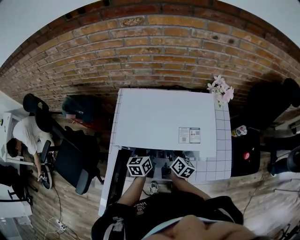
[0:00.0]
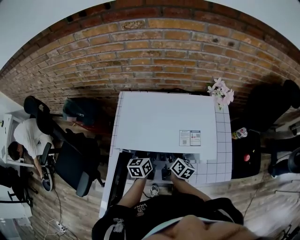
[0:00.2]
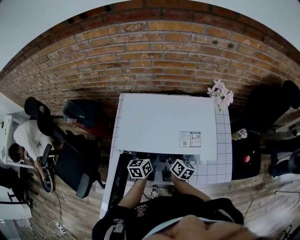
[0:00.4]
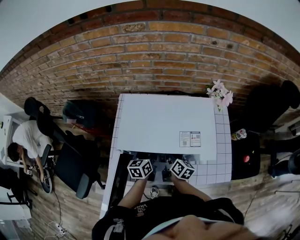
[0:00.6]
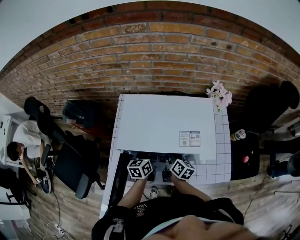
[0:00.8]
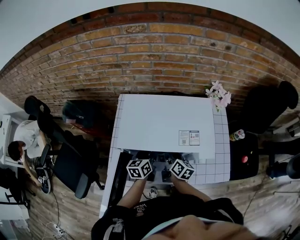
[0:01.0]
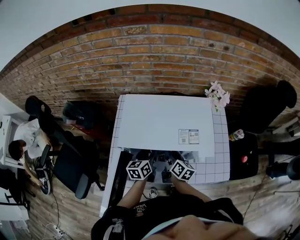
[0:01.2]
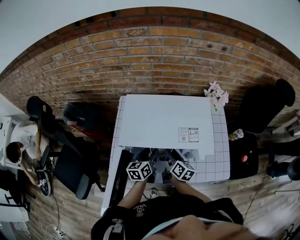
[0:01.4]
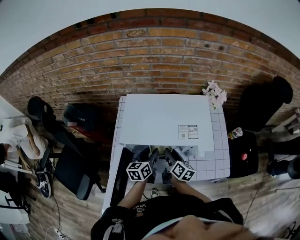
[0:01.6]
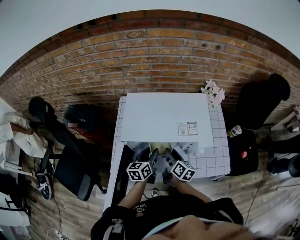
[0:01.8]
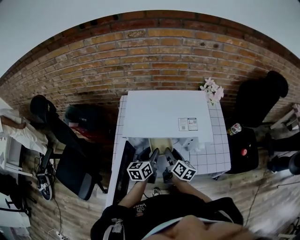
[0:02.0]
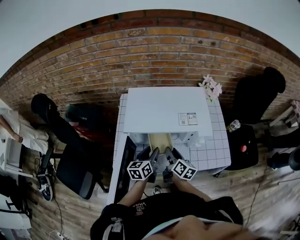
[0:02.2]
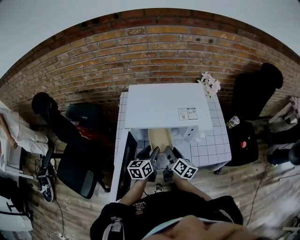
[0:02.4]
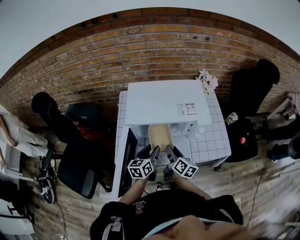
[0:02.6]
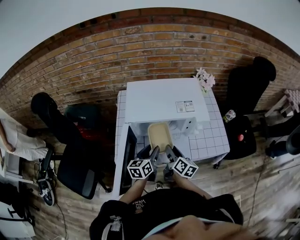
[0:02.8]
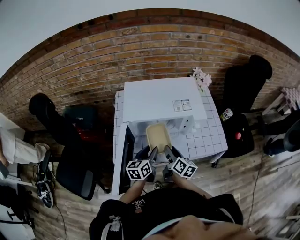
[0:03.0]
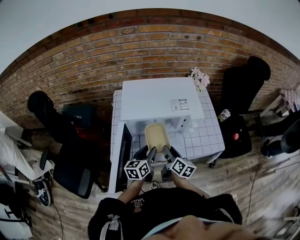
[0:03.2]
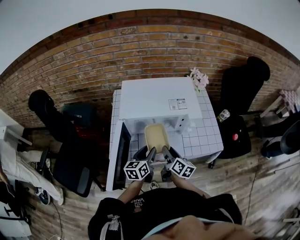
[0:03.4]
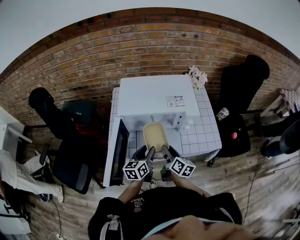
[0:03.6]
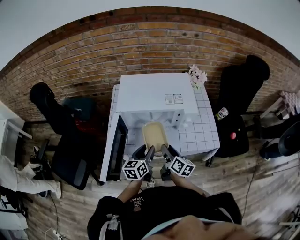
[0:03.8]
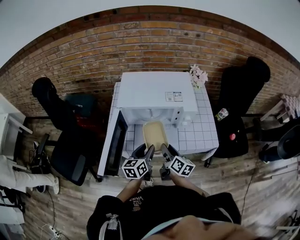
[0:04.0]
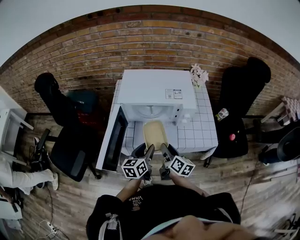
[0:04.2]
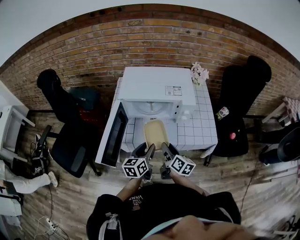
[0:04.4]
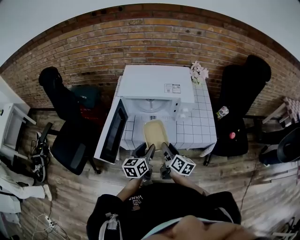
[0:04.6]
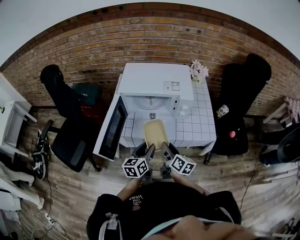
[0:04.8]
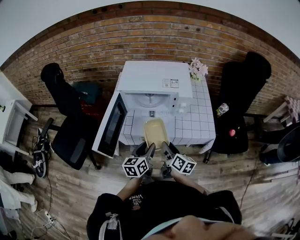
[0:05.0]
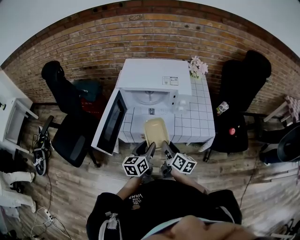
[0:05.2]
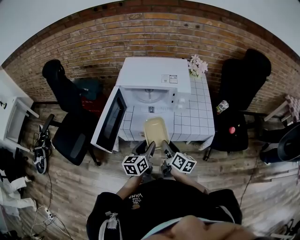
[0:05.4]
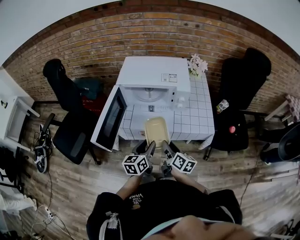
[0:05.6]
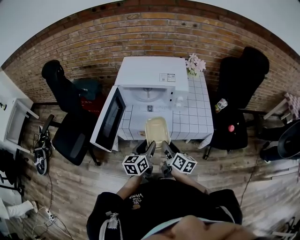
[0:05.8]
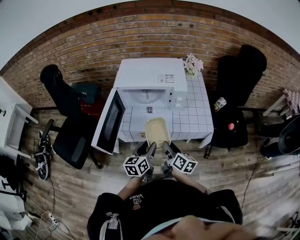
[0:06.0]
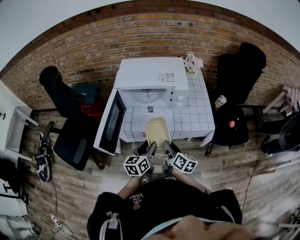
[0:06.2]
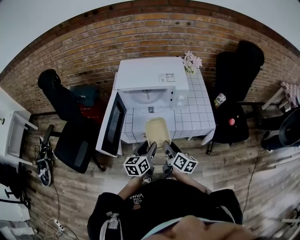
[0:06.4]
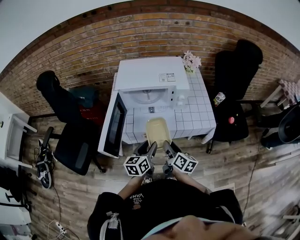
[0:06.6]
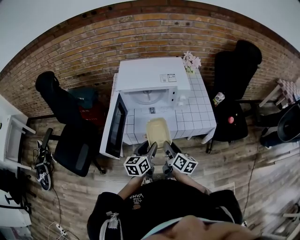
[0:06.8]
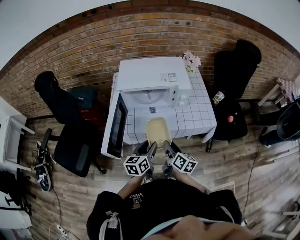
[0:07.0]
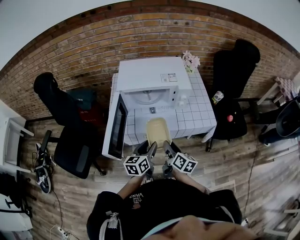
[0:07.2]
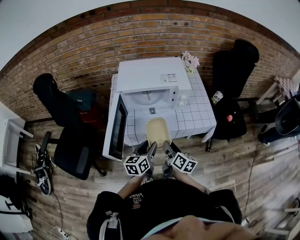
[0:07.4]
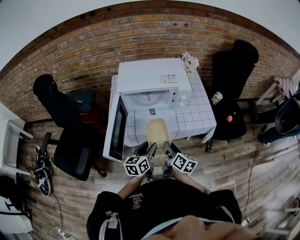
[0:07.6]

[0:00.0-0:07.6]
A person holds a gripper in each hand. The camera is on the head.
0.0 to 1.6 s: There are only small adjustments of the grippers.
1.6 to 3.0 s: The grippers both shift backward by about 15 cm.
3.0 to 4.6 s: The grippers both shift backward and to the right by roughly 15 cm.
4.6 to 6.0 s: The two grippers go about 5 cm backward.
6.0 to 7.6 s: The grippers both shift to the left by some 5 cm.

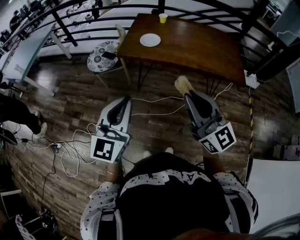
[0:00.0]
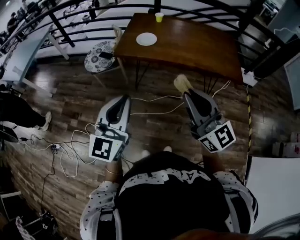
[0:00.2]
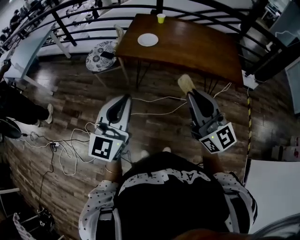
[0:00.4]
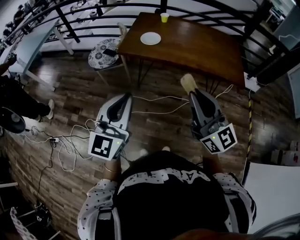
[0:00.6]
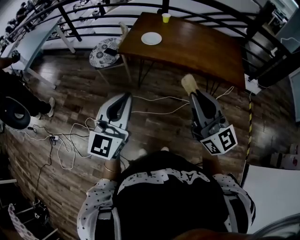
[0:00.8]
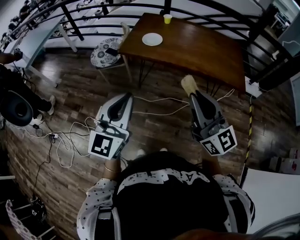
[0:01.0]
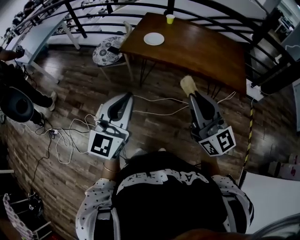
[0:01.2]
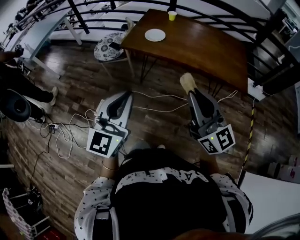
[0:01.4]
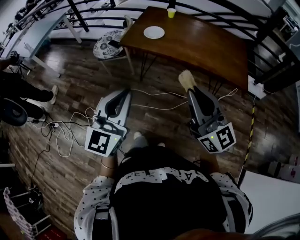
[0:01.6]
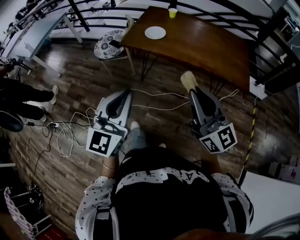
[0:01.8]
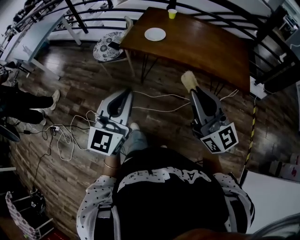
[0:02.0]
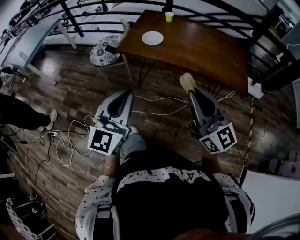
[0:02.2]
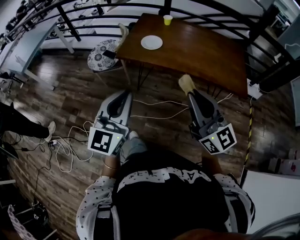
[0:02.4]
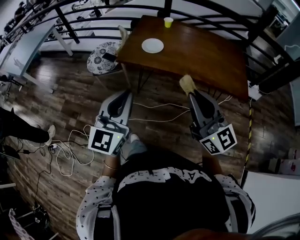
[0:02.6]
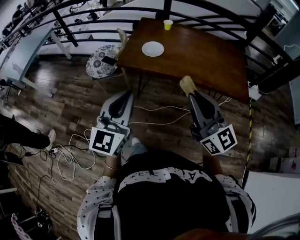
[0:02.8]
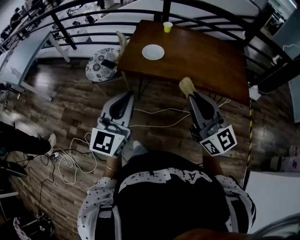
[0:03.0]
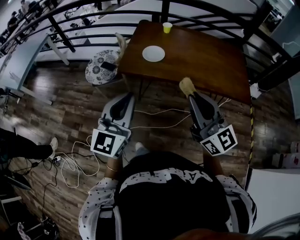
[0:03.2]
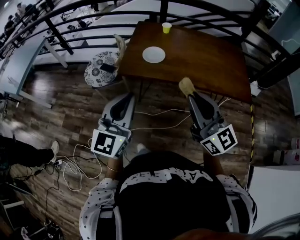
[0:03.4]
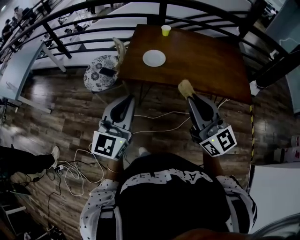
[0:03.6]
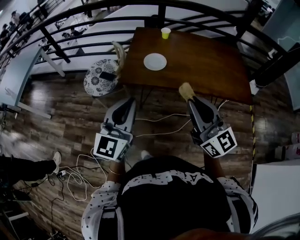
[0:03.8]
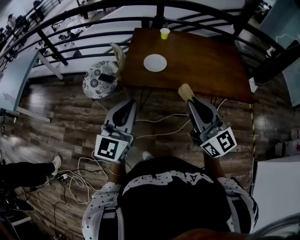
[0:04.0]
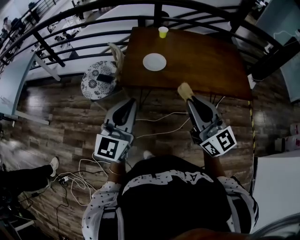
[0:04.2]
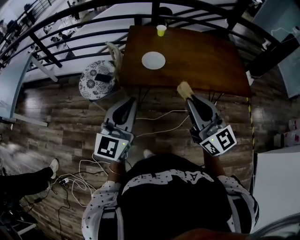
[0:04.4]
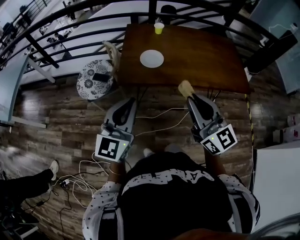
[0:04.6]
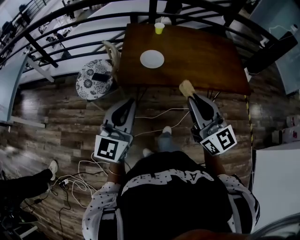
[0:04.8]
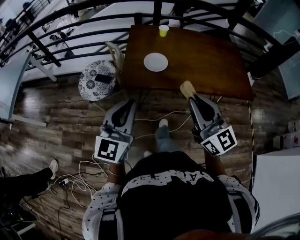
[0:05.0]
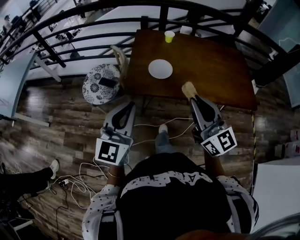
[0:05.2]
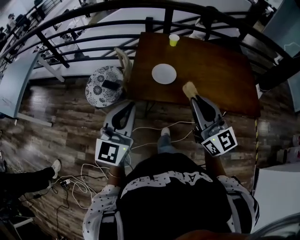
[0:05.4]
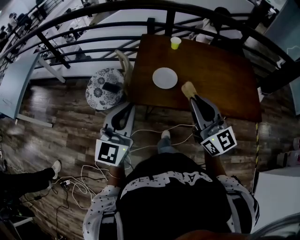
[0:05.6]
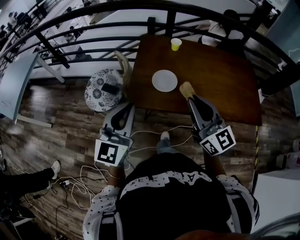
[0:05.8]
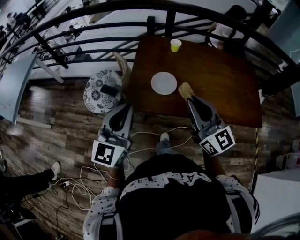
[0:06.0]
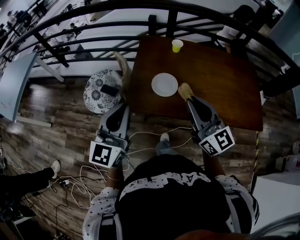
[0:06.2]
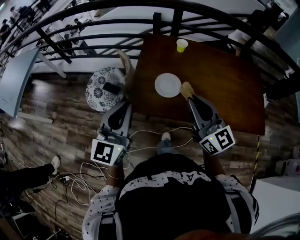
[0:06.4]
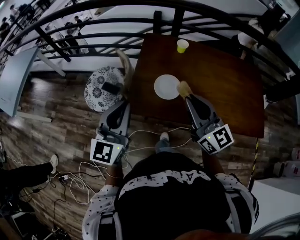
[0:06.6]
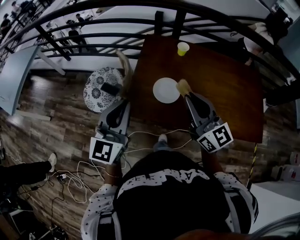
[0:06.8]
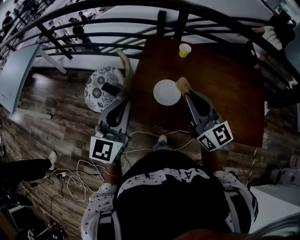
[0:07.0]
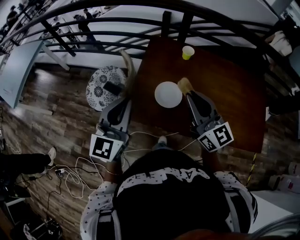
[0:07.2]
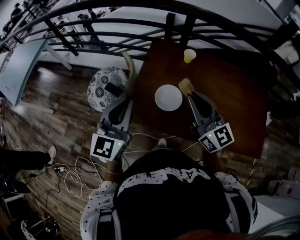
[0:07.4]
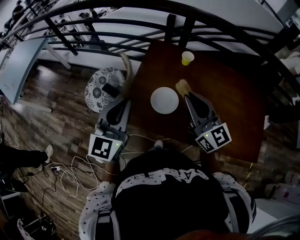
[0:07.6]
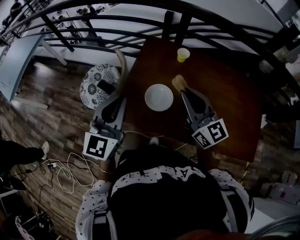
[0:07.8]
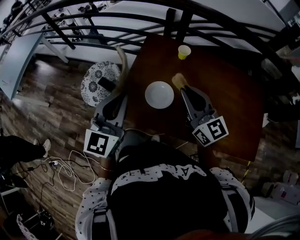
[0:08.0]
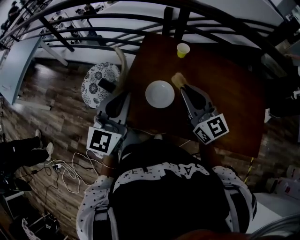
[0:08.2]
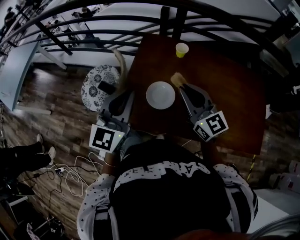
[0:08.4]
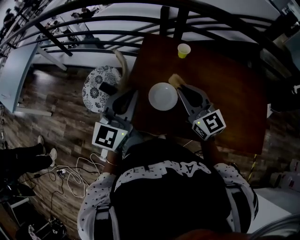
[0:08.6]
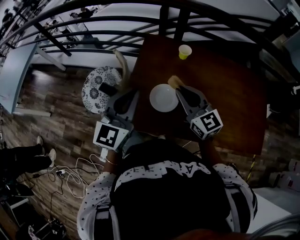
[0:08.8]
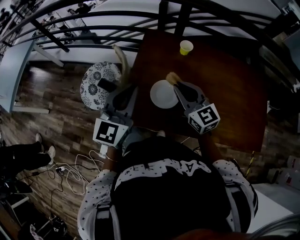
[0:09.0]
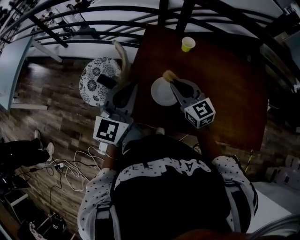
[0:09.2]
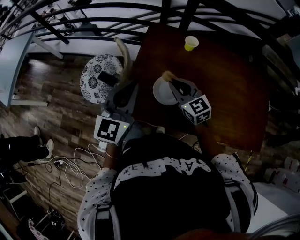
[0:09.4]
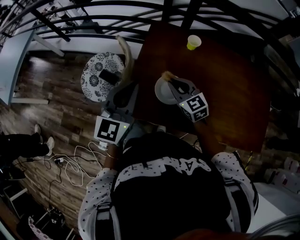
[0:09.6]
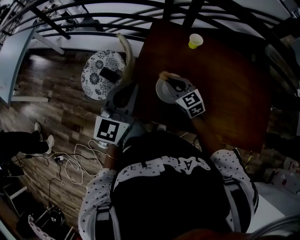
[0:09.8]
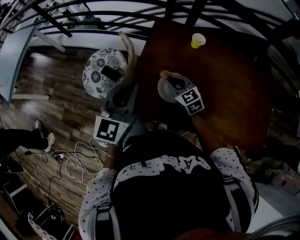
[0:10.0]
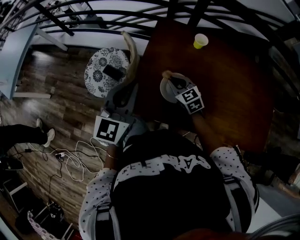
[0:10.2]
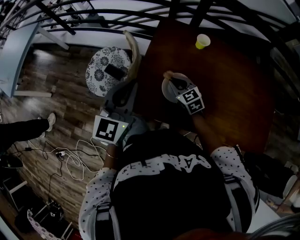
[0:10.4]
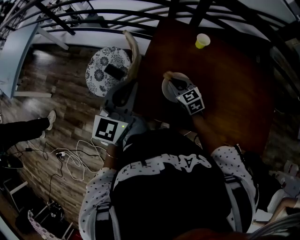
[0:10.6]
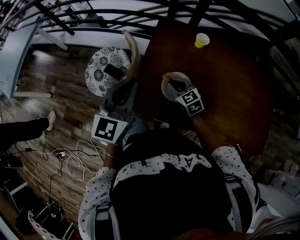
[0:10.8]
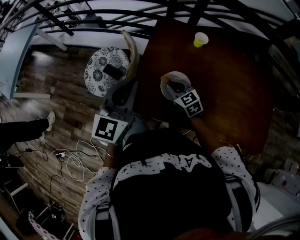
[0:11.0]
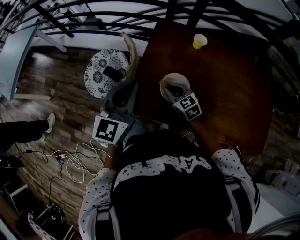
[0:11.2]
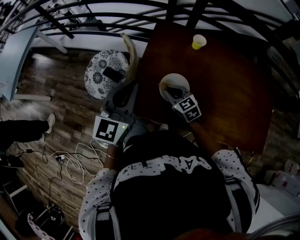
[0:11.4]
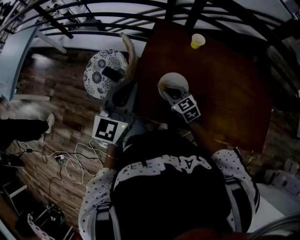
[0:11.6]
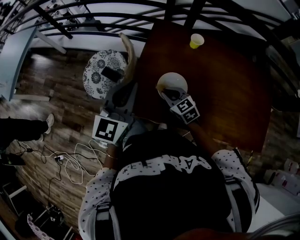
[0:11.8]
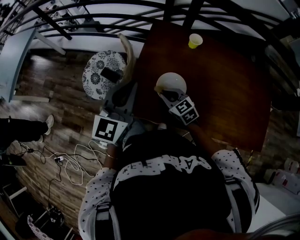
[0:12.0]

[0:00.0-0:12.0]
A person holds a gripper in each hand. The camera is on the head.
0.0 to 1.6 s: The two grippers go about 5 cm to the right.
1.6 to 3.0 s: The left gripper goes approximately 15 cm forward; the right gripper is displaced forward and to the left by some 15 cm.
3.0 to 4.4 s: The right gripper goes some 10 cm to the left and forward. Meanwhile the left gripper is displaced forward and to the left by approximately 10 cm.
4.4 to 6.0 s: Both grippers travel together forward, about 15 cm.
6.0 to 7.6 s: The two grippers go about 15 cm forward.
7.6 to 9.0 s: The right gripper moves downward and forward, about 10 cm; the left gripper moves roughly 5 cm.
9.0 to 10.4 s: The left gripper shifts about 5 cm to the left; the right gripper goes approximately 15 cm downward, and changes its angle by some 30 degrees.
10.4 to 12.0 s: The right gripper is displaced backward by approximately 5 cm.

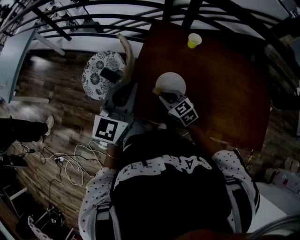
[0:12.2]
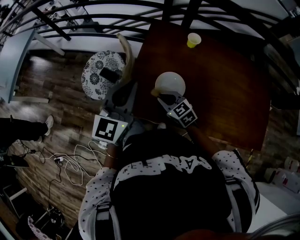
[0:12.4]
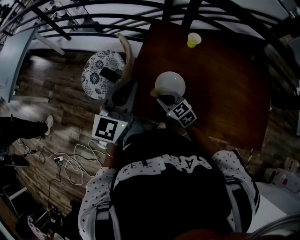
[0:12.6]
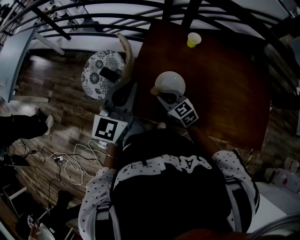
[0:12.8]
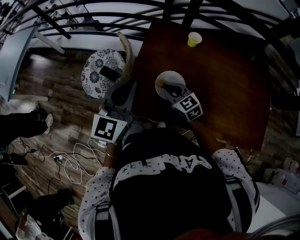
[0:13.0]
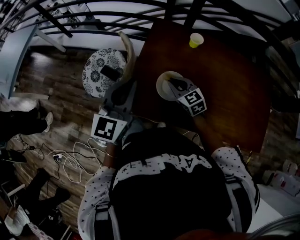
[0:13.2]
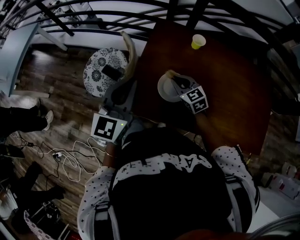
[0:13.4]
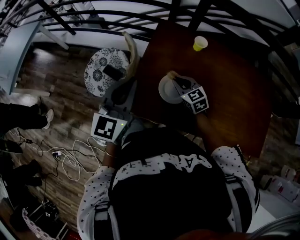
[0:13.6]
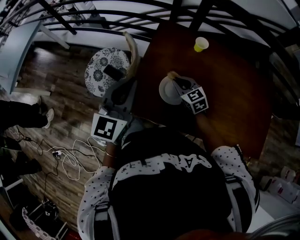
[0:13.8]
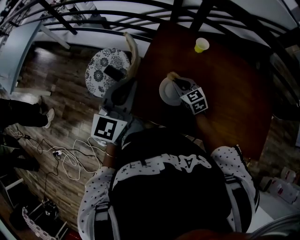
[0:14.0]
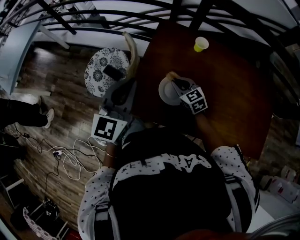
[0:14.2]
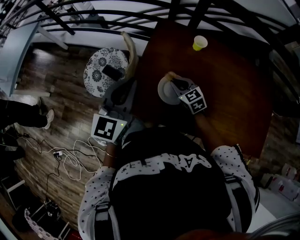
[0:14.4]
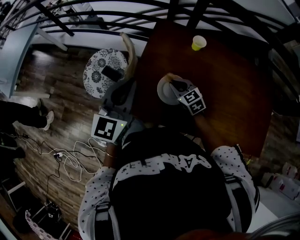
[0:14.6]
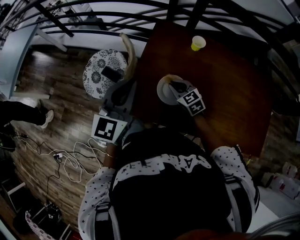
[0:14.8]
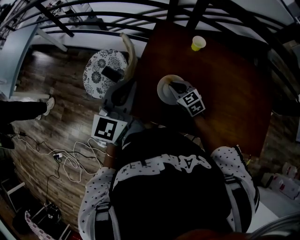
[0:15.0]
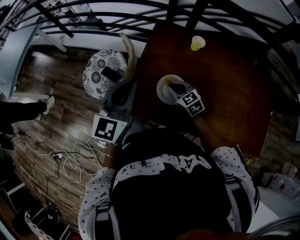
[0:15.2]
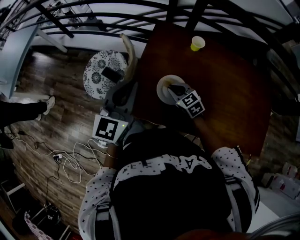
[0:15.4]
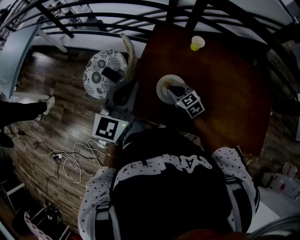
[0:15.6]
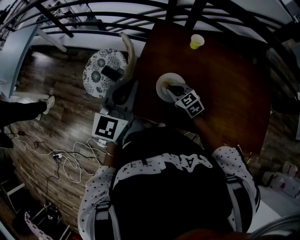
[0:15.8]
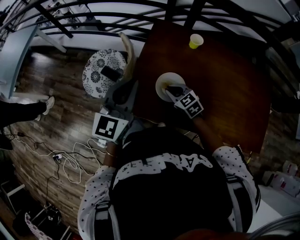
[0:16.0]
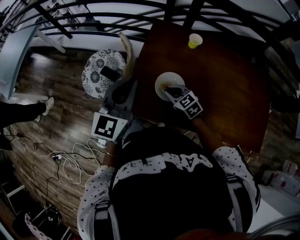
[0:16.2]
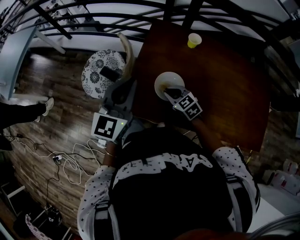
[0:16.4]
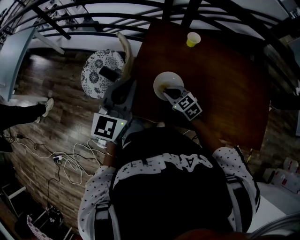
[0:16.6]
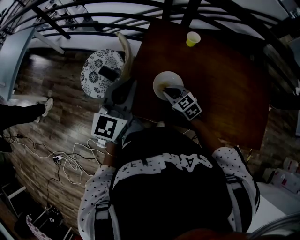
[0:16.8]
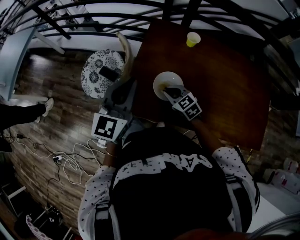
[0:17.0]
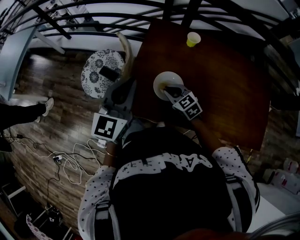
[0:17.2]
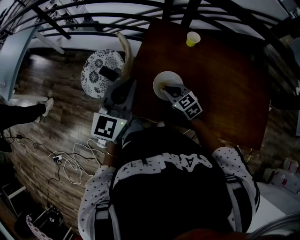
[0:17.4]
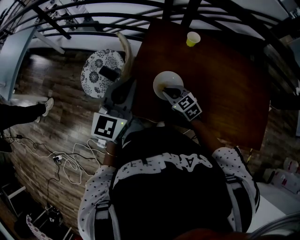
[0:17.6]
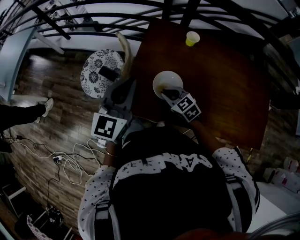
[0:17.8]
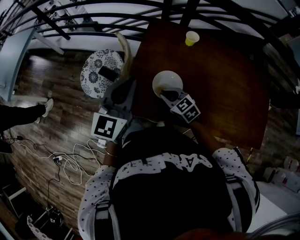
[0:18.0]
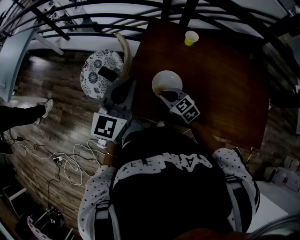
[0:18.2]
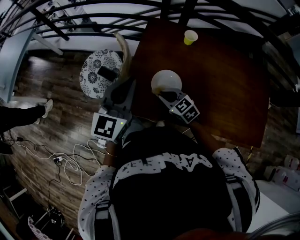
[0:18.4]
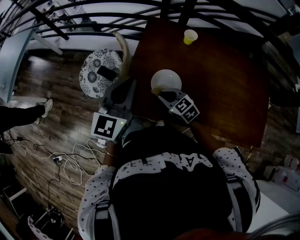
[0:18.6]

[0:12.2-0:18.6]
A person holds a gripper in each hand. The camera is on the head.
12.2 to 13.8 s: The right gripper moves forward and to the right, some 10 cm.
13.8 to 15.4 s: The grippers stay close to where they were, moving slightly.
15.4 to 17.0 s: The grippers move only a little.
17.0 to 18.6 s: The grippers move only a little.
